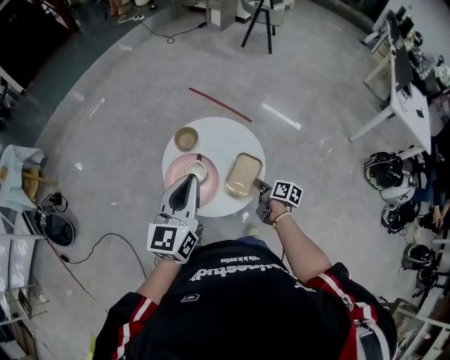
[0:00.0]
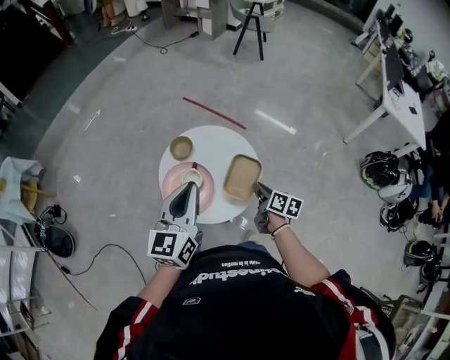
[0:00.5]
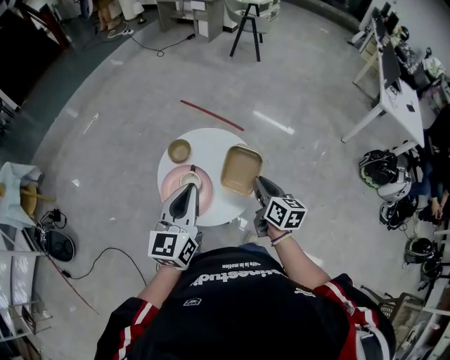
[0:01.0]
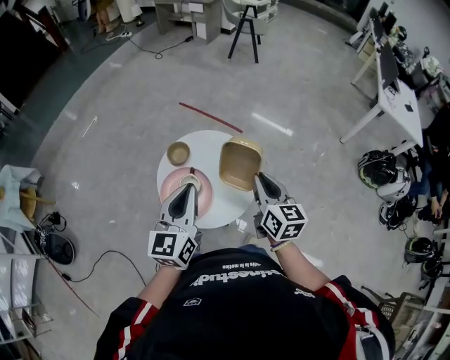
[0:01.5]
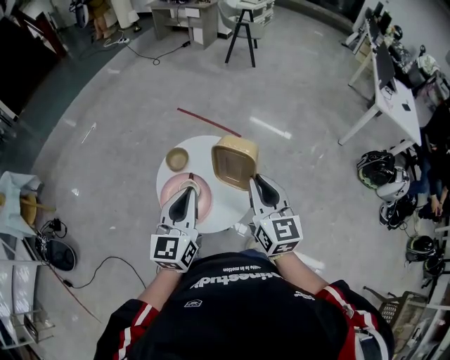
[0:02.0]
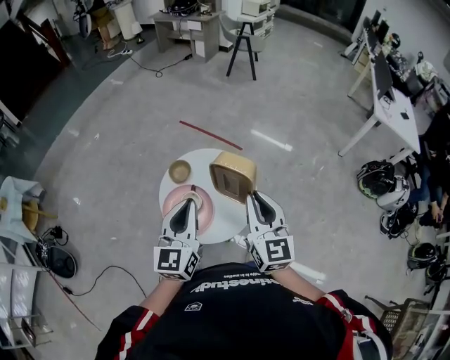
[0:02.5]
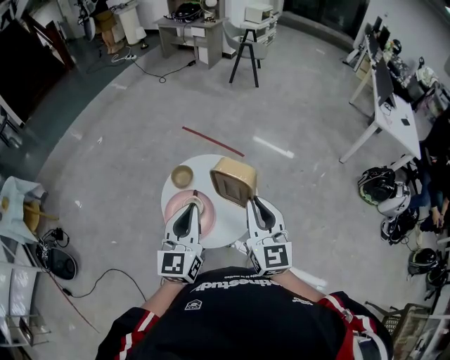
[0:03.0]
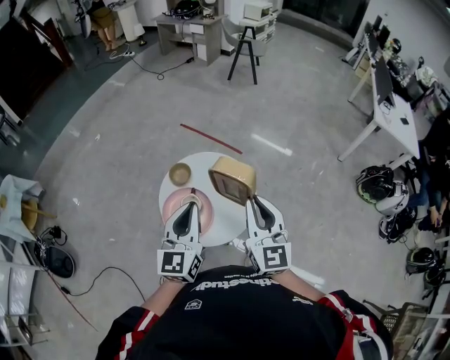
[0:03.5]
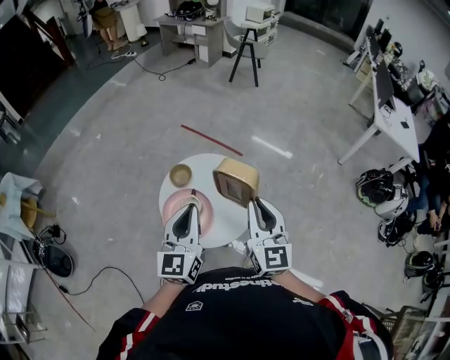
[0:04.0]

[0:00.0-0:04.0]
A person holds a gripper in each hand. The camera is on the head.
0:00.0 to 0:02.0: The right gripper goes approximately 30 cm upward, and rolls counterclockwise, seen from behind, by some 50 degrees.
0:02.0 to 0:04.0: The grippers make only small movements.

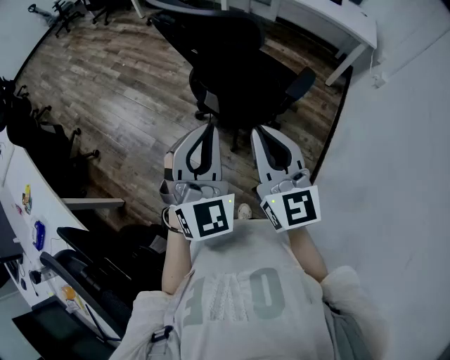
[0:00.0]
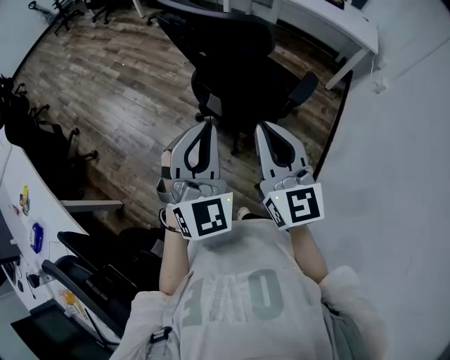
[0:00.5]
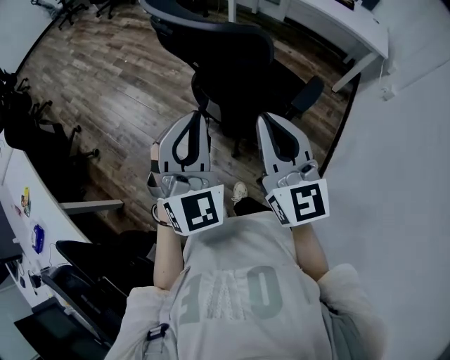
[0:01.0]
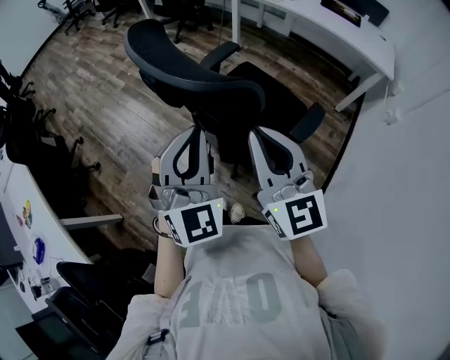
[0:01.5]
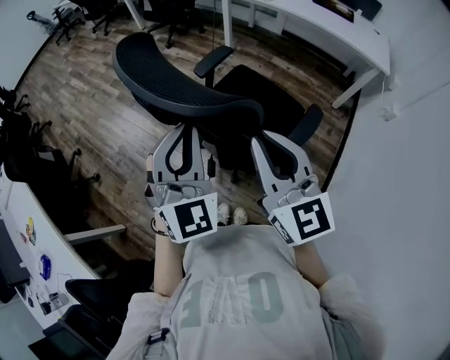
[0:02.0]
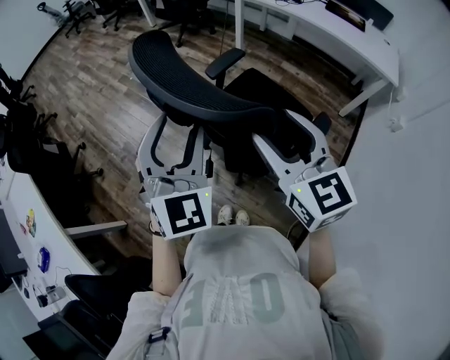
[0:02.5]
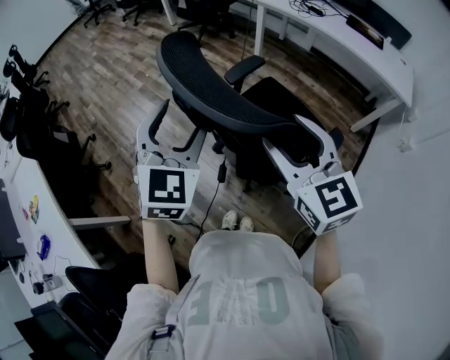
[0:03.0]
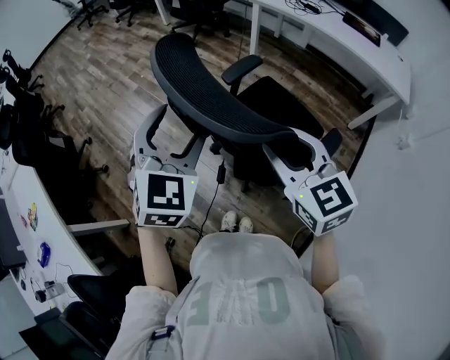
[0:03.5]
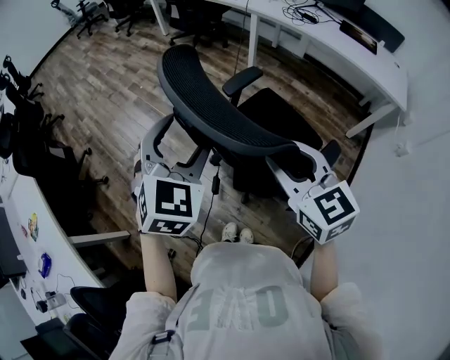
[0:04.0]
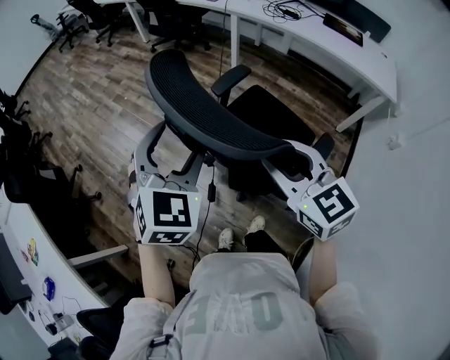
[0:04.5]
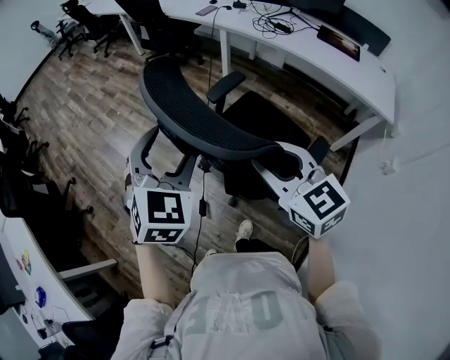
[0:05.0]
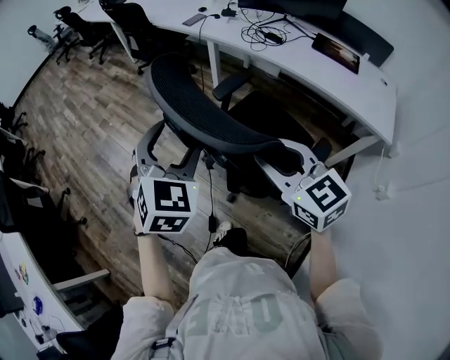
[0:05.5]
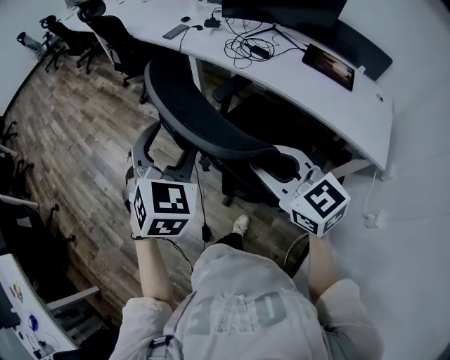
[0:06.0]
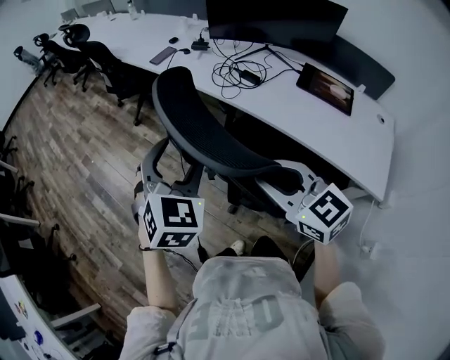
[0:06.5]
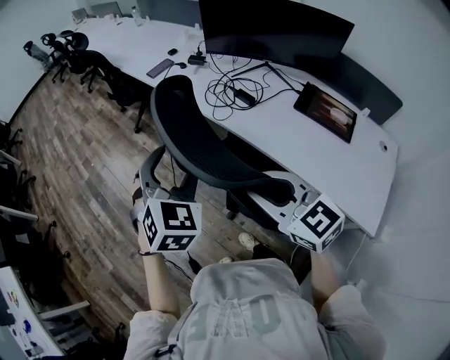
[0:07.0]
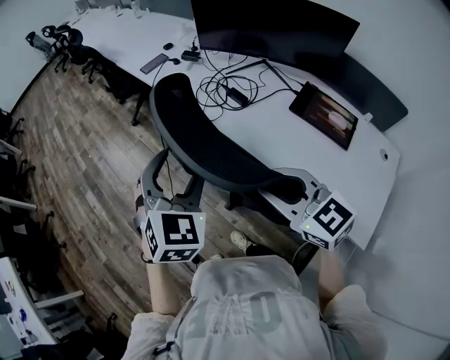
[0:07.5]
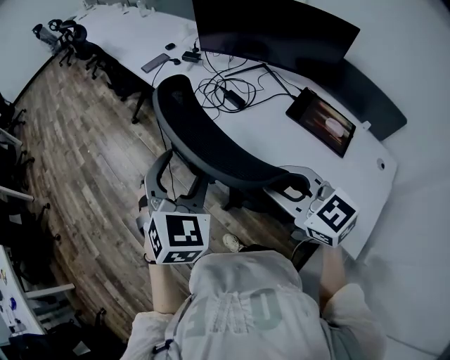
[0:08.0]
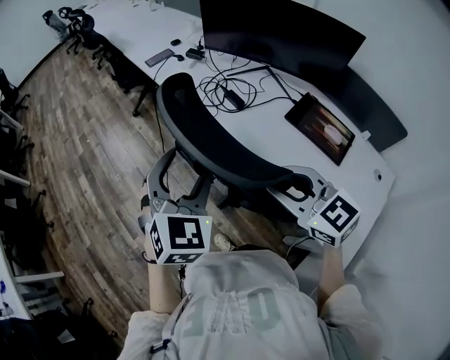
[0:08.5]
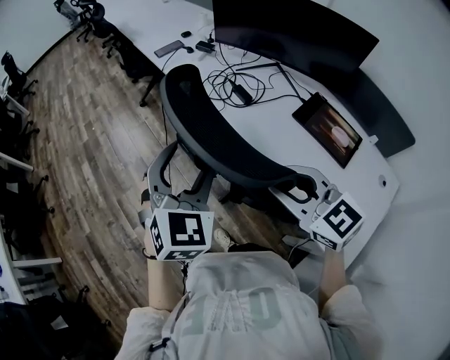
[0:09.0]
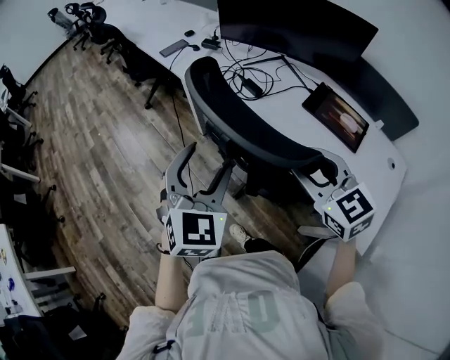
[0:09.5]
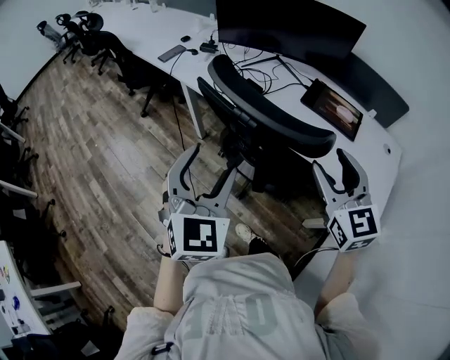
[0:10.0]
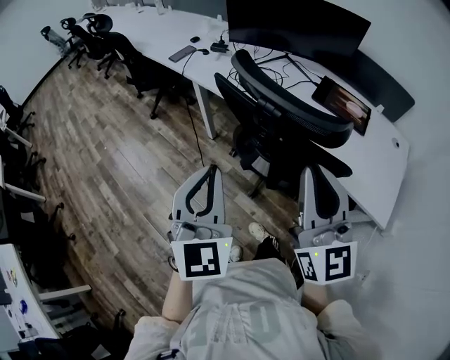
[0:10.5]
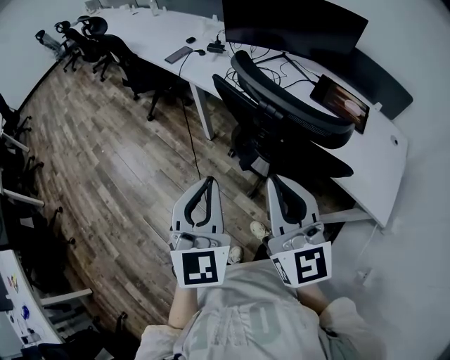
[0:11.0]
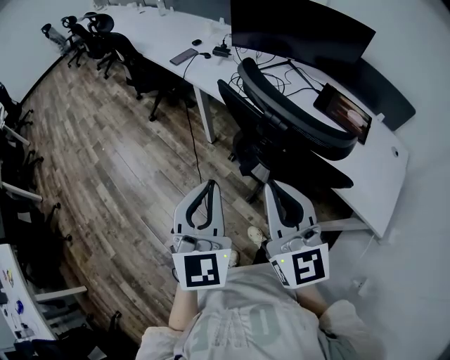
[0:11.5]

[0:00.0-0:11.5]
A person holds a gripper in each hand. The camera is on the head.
0:00.0 to 0:02.0: Both grippers move forward, some 20 cm.
0:02.0 to 0:04.0: The left gripper is displaced forward and to the left by some 10 cm, turns by about 20 degrees, and opens; the right gripper goes approximately 5 cm forward, changes its angle by roughly 20 degrees, and opens.
0:04.0 to 0:06.0: The pair of grippers is taken to the right and forward, roughly 50 cm.
0:06.0 to 0:07.5: Both grippers move to the right and forward, about 30 cm.
0:07.5 to 0:09.5: The right gripper moves to the right, about 5 cm; the left gripper is displaced backward by some 5 cm.
0:09.5 to 0:11.5: Both grippers travel together to the left and backward, approximately 20 cm. The right gripper swivels some 30 degrees, and closes. Meanwhile the left gripper closes.

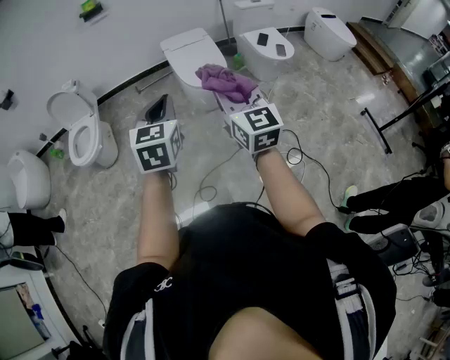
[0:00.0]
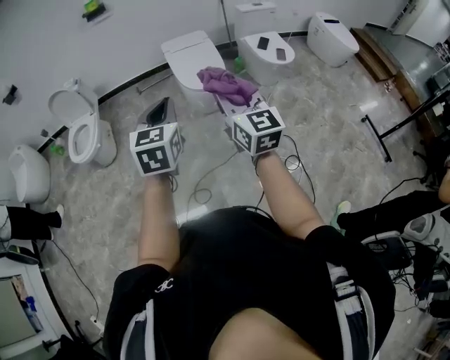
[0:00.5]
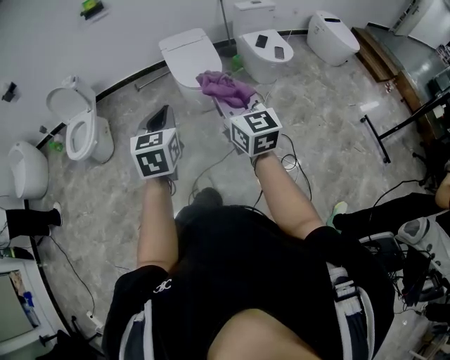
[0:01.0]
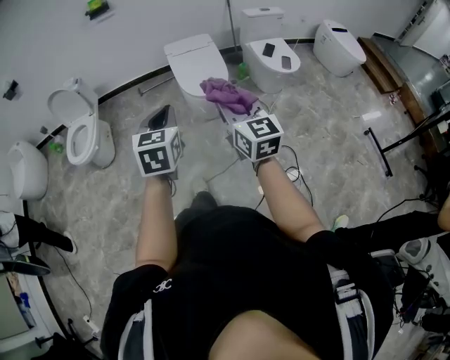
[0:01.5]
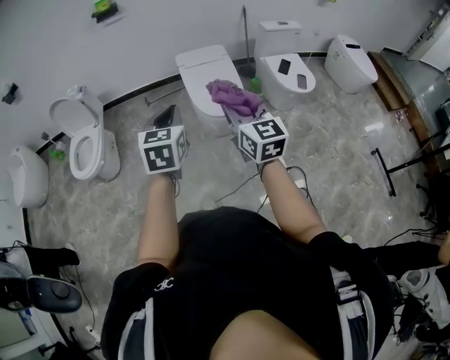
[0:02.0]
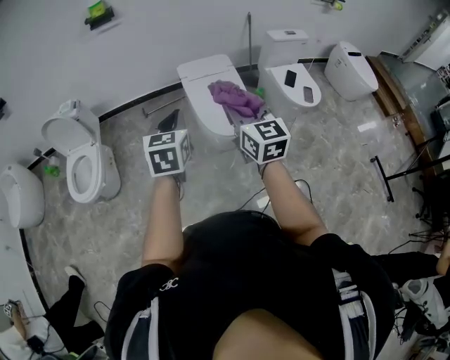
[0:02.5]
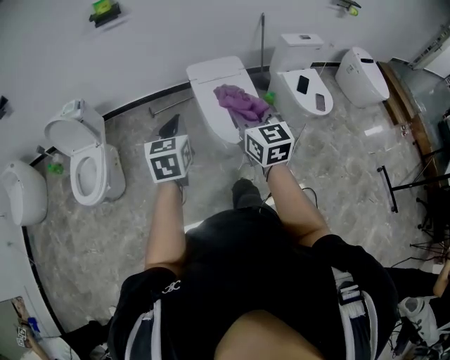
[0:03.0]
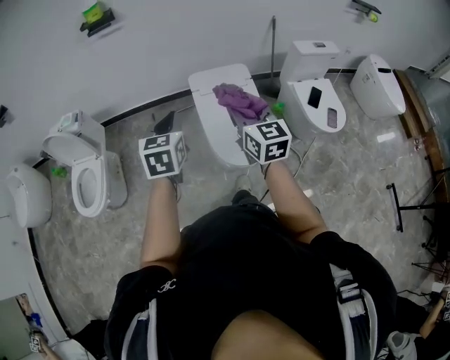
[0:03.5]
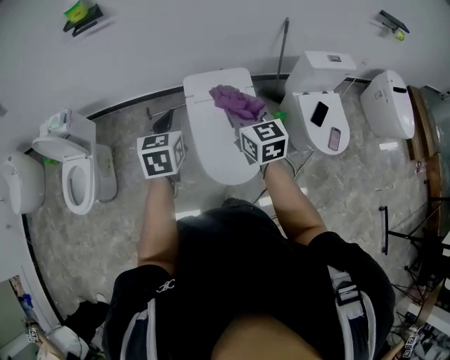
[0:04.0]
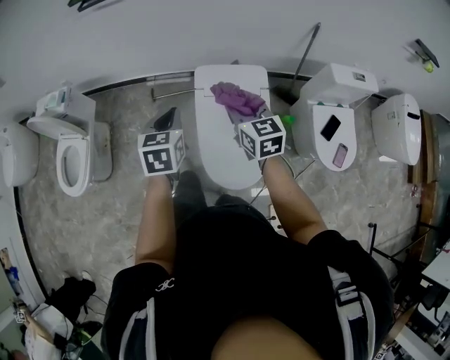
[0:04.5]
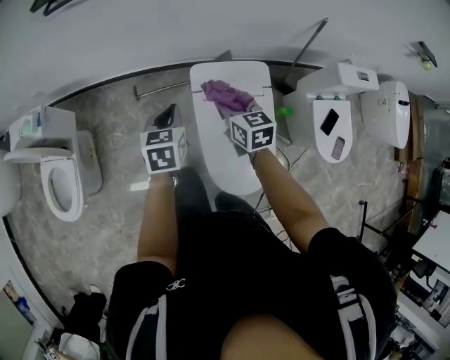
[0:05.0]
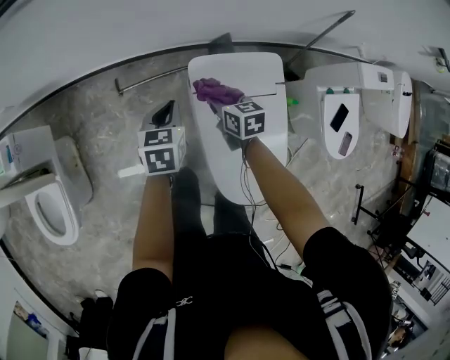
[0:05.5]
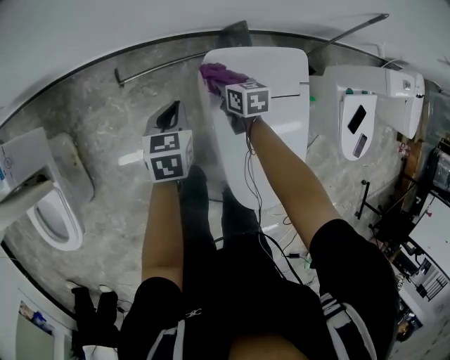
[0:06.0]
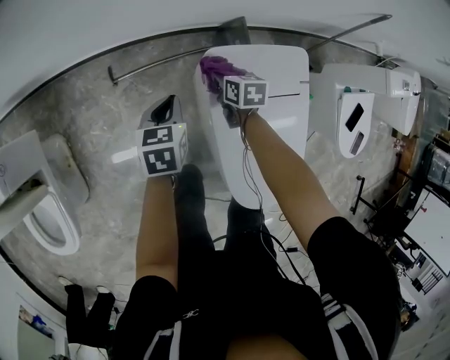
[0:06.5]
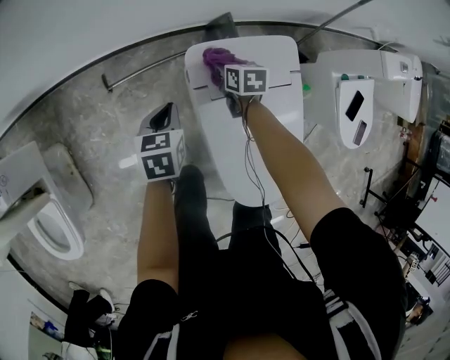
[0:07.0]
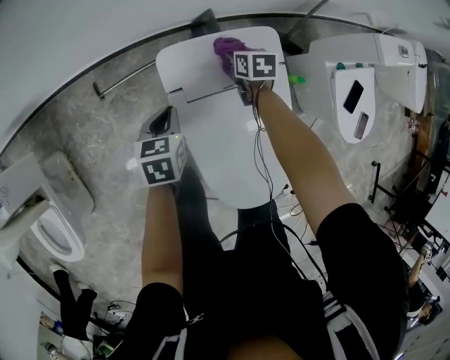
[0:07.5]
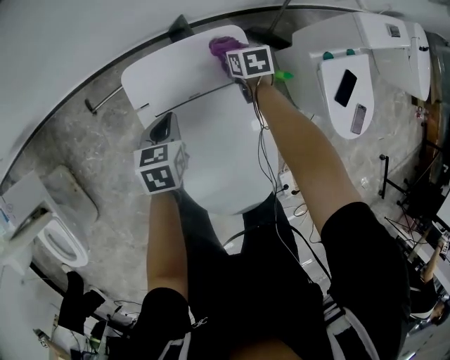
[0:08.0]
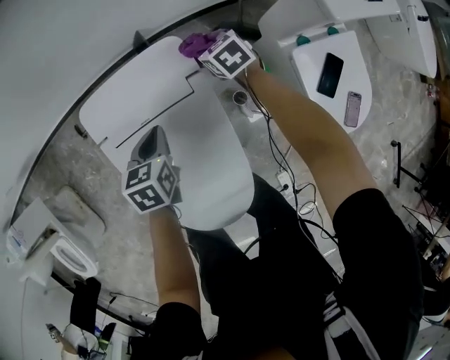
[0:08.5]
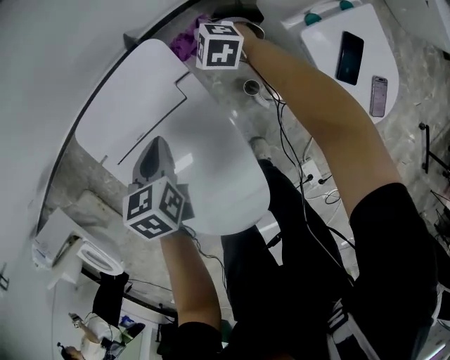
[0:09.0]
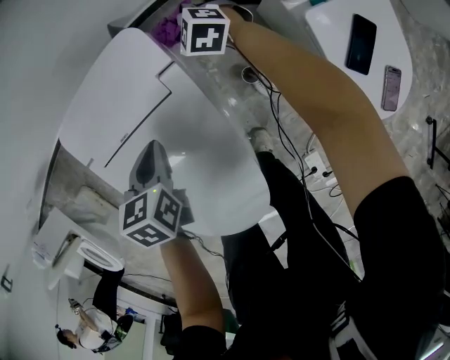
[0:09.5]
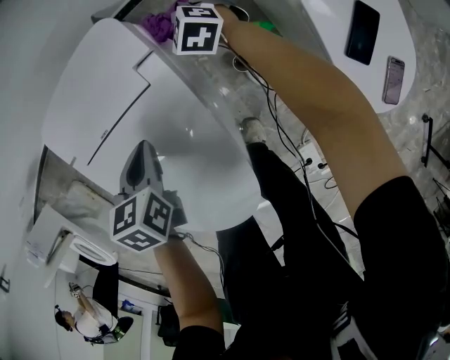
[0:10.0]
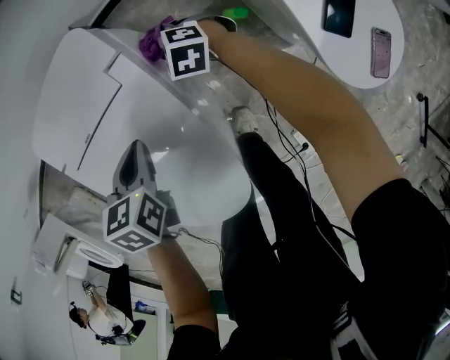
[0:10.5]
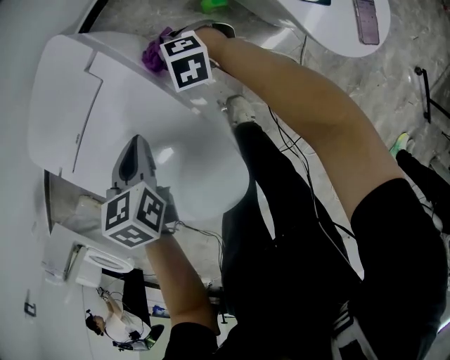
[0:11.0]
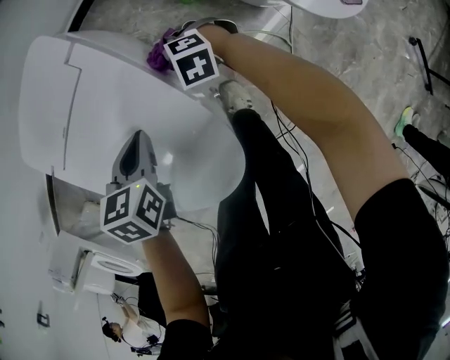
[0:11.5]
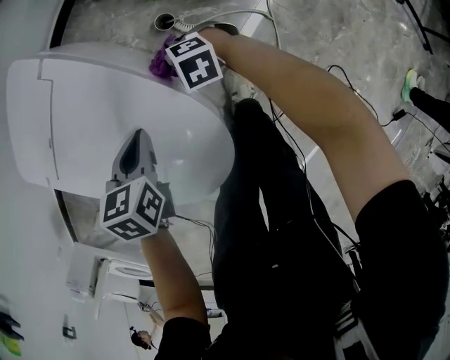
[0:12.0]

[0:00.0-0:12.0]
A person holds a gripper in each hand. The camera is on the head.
0:00.0 to 0:02.0: The grippers both shift forward by about 20 cm.
0:02.0 to 0:04.0: The two grippers travel together, forward, about 60 cm.
0:04.0 to 0:06.0: The two grippers go roughly 60 cm downward and forward. The left gripper changes its angle by roughly 20 degrees; the right gripper points its fingers approximately 40 degrees further downward.
0:06.0 to 0:08.0: The grippers both shift to the right by some 25 cm.
0:08.0 to 0:10.0: The left gripper shifts approximately 20 cm to the right and downward. Meanwhile the right gripper is displaced downward and to the right by some 20 cm, and rolls counterclockwise, seen from behind, by approximately 50 degrees.
0:10.0 to 0:12.0: The right gripper shifts by about 35 cm; the left gripper moves about 20 cm, and rotates approximately 30 degrees.
